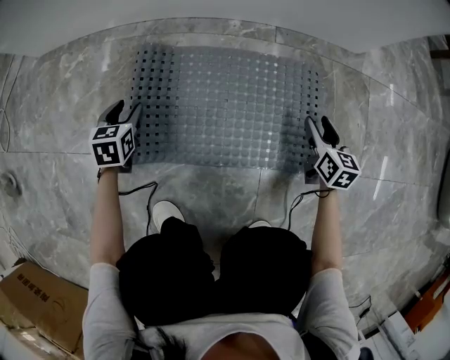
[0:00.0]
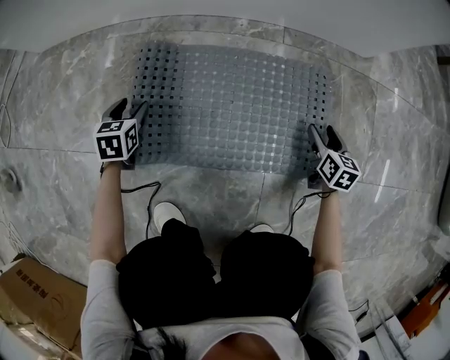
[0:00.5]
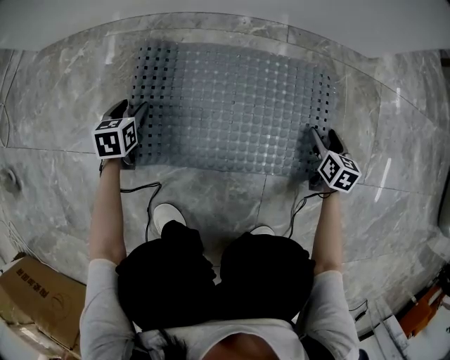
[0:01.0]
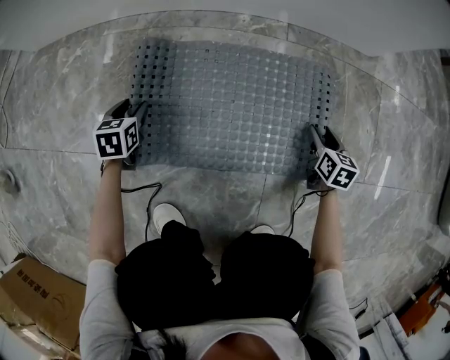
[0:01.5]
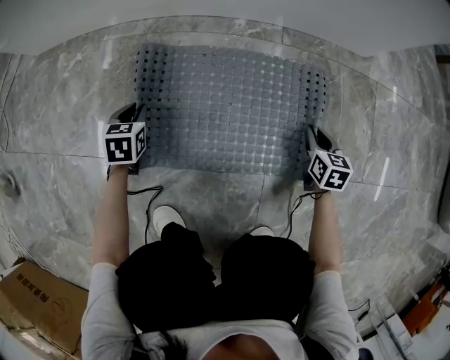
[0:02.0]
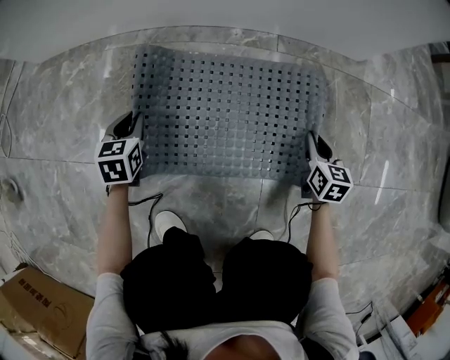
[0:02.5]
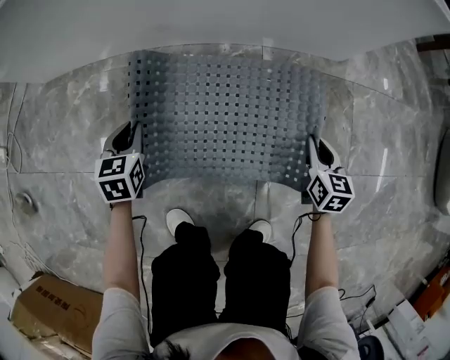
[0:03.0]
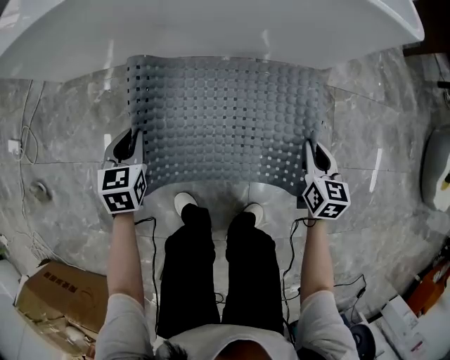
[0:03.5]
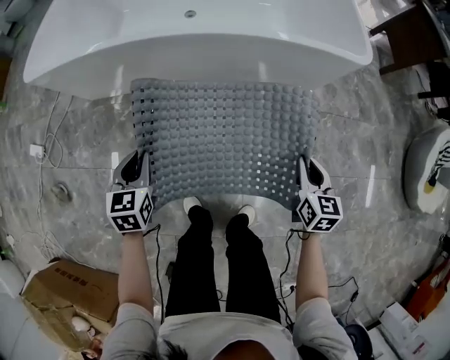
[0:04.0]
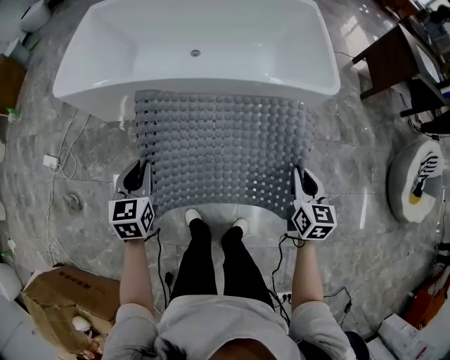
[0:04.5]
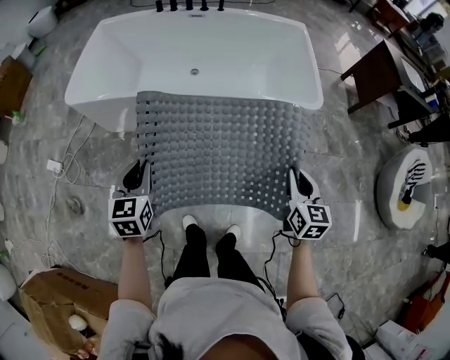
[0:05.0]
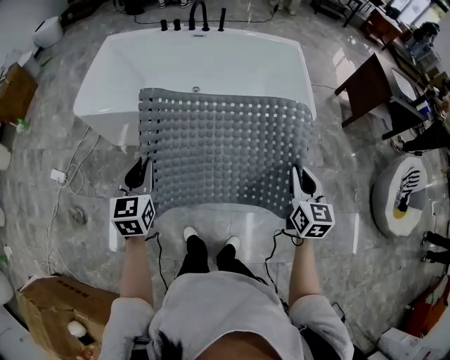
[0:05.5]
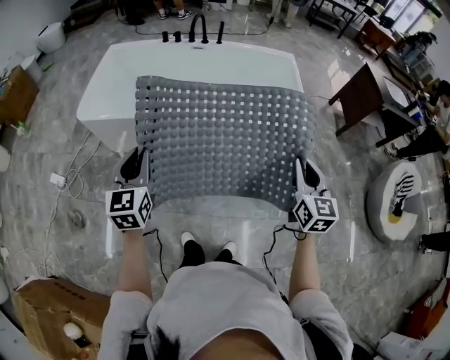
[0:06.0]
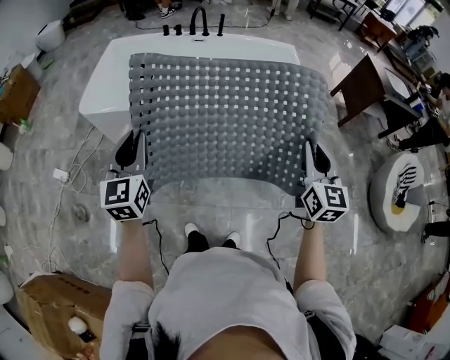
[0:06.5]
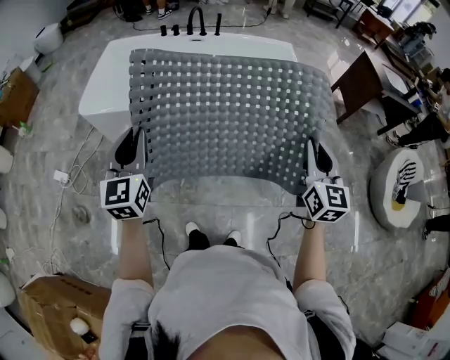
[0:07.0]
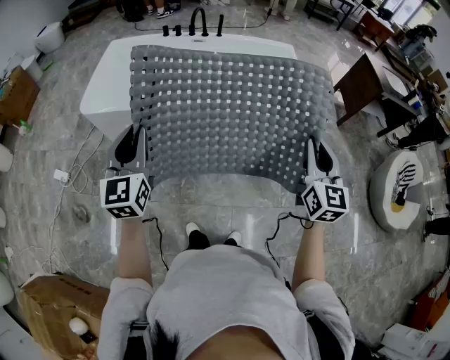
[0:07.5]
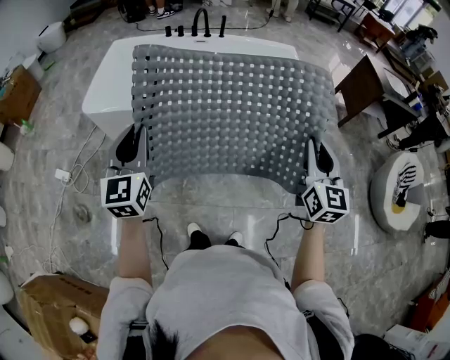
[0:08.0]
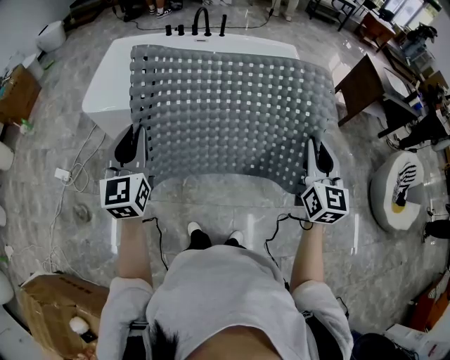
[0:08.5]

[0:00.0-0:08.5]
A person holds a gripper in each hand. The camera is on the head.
0:00.0 to 0:02.0: The right gripper travels downward by about 5 cm, and closes up; the left gripper closes up.
0:02.0 to 0:04.0: Both grippers travel together upward, roughly 60 cm.
0:04.0 to 0:06.5: The grippers both shift upward by about 50 cm. The left gripper angles its fingers upward, by about 30 degrees. Meanwhile the right gripper swivels approximately 30 degrees.
0:06.5 to 0:08.5: The grippers move only a little.

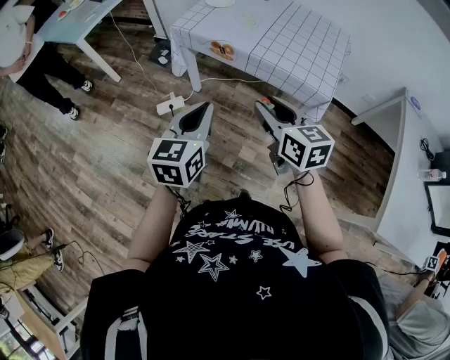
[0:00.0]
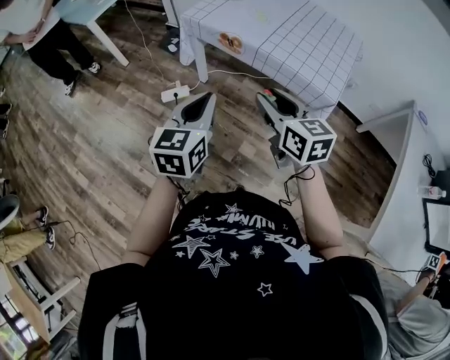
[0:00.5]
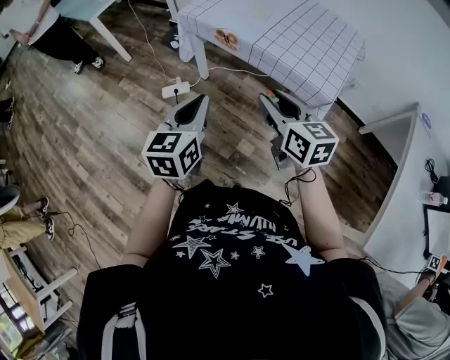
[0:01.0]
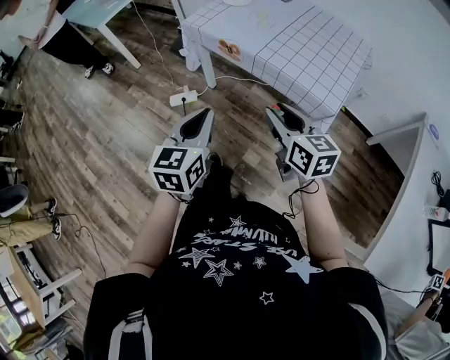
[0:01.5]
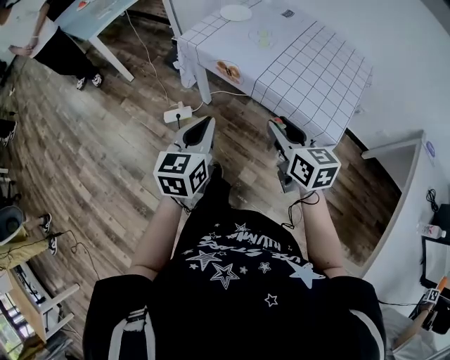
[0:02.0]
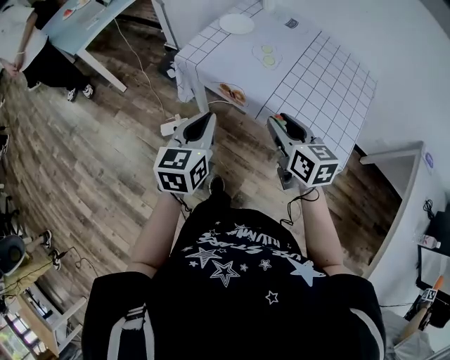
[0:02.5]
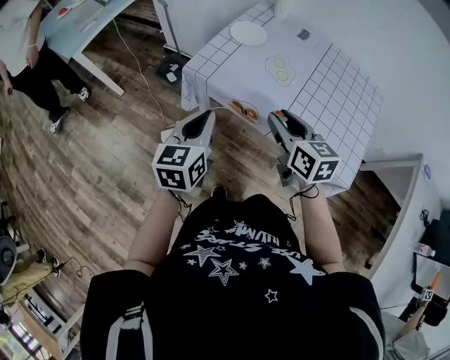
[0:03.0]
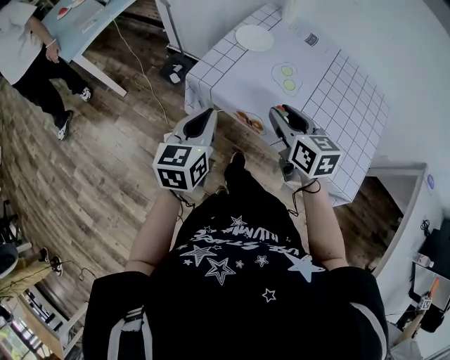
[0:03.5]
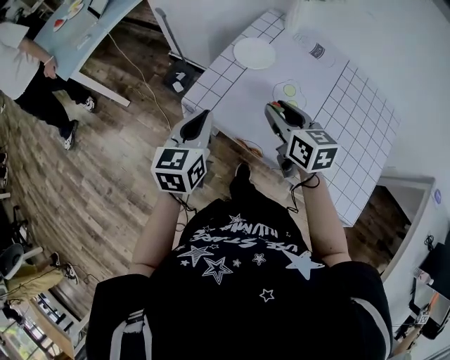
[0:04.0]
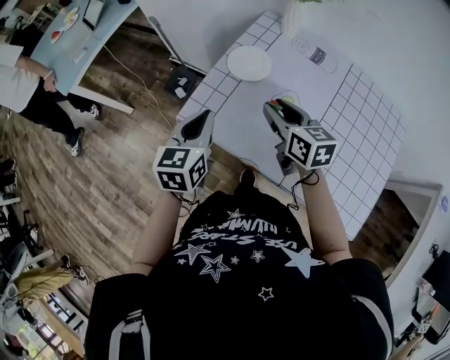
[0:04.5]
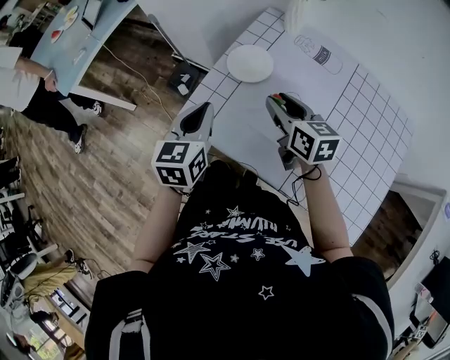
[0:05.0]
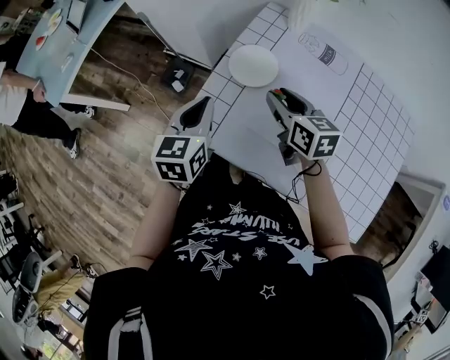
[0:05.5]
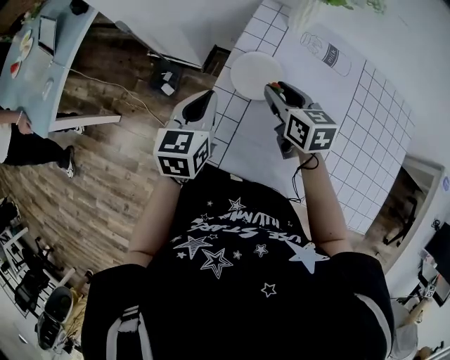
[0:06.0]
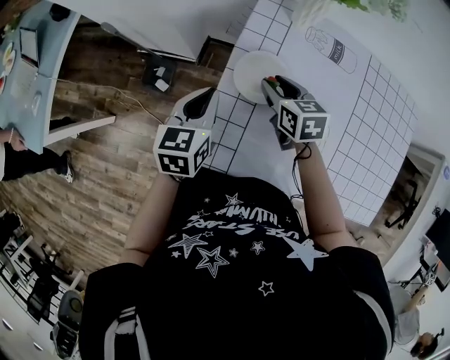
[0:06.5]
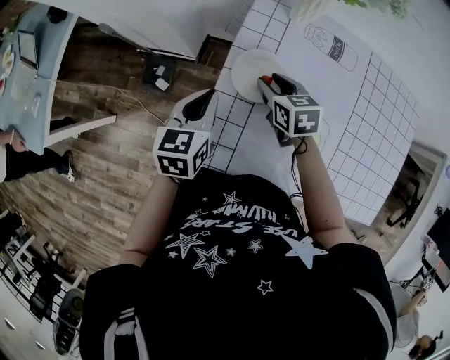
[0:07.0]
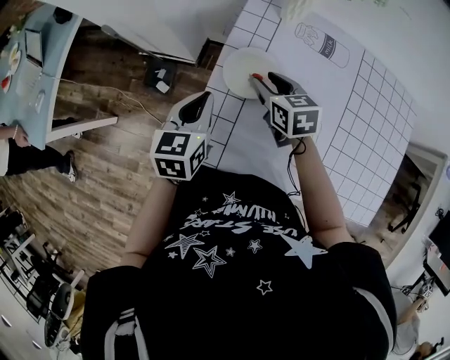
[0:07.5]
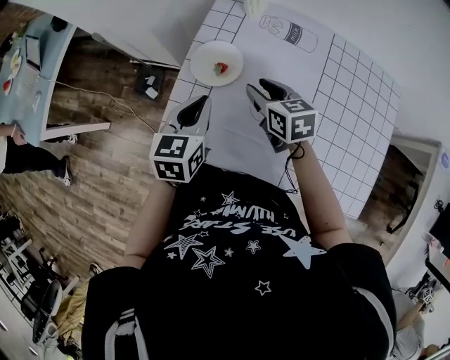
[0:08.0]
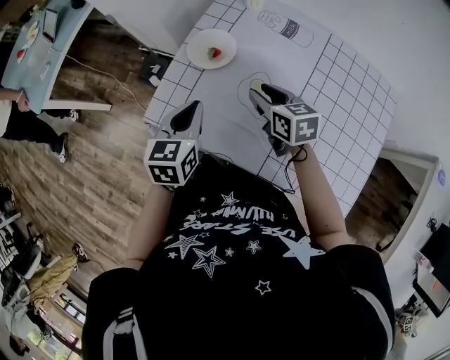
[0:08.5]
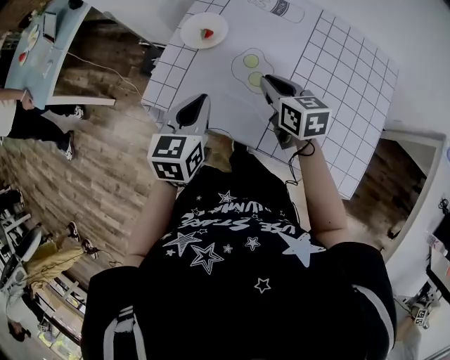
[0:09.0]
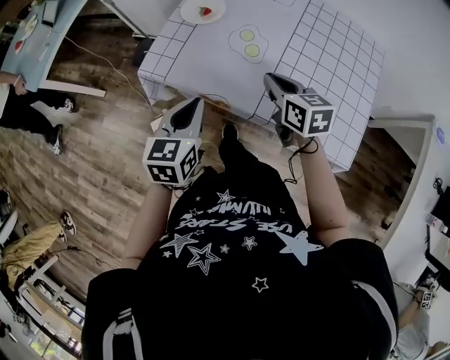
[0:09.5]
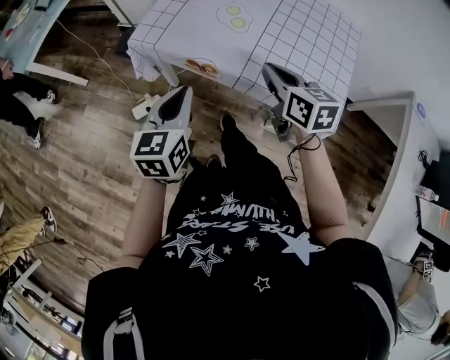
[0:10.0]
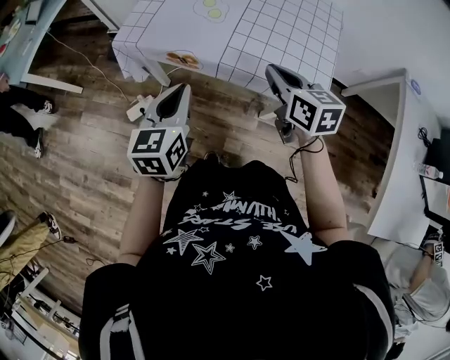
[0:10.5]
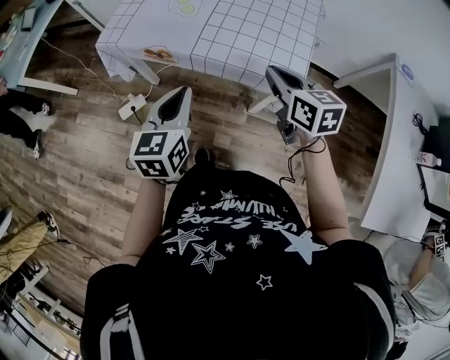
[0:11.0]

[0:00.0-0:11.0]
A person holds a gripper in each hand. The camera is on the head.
0:00.0 to 0:02.0: The left gripper shifts some 10 cm forward; the right gripper travels forward and to the right by approximately 15 cm.
0:02.0 to 0:03.5: The two grippers go approximately 25 cm forward.
0:03.5 to 0:05.5: The two grippers go roughly 25 cm forward.
0:05.5 to 0:07.5: The left gripper heads forward, covering some 10 cm. Meanwhile the right gripper is displaced forward and downward by roughly 10 cm.
0:07.5 to 0:09.0: The two grippers go about 25 cm backward and to the right. The right gripper closes its fingers.
0:09.0 to 0:11.0: The right gripper shifts some 35 cm backward and to the right. The left gripper travels backward by about 30 cm.

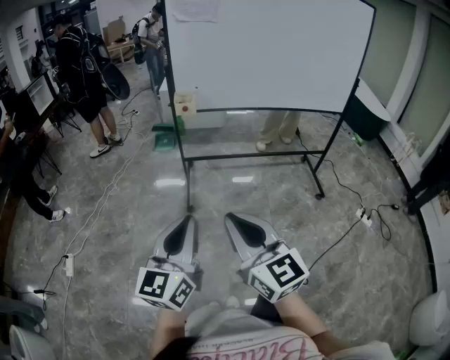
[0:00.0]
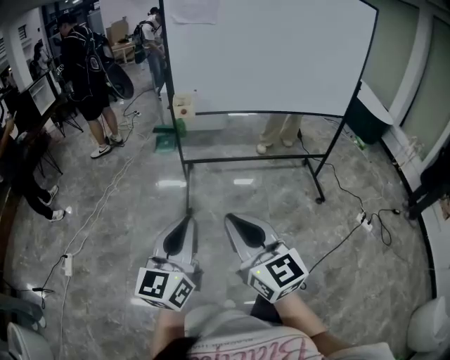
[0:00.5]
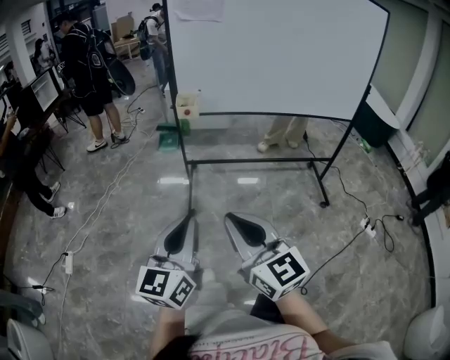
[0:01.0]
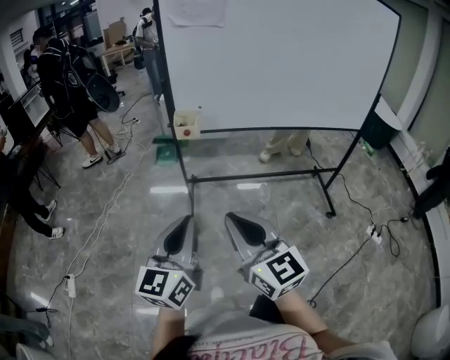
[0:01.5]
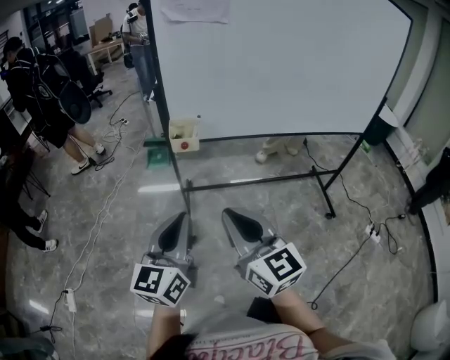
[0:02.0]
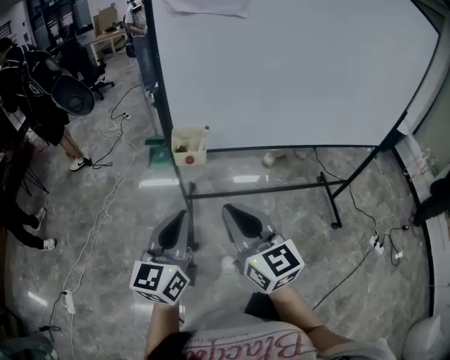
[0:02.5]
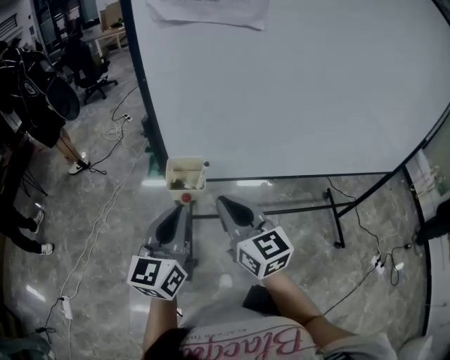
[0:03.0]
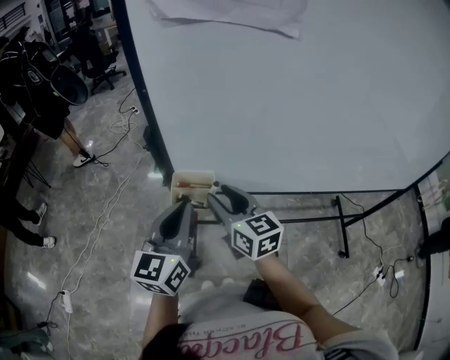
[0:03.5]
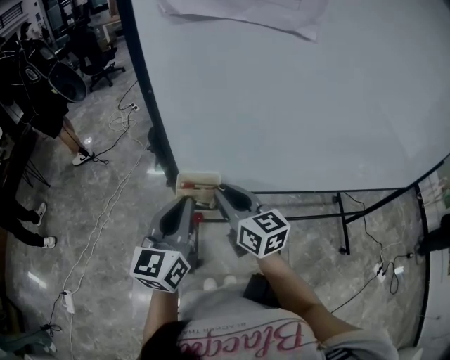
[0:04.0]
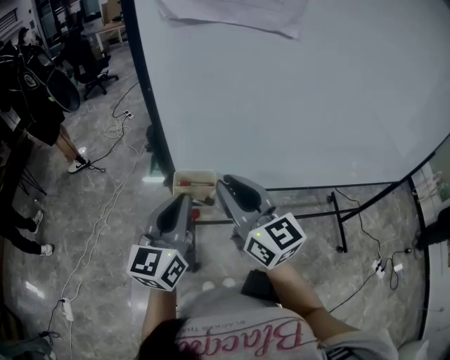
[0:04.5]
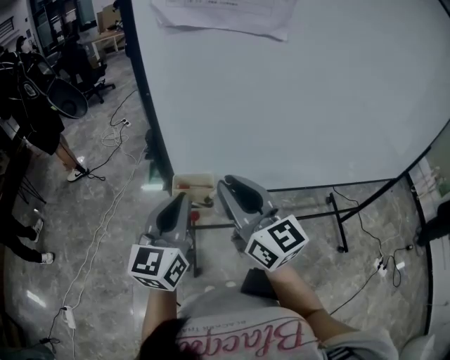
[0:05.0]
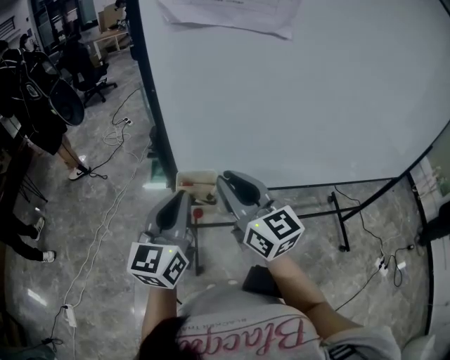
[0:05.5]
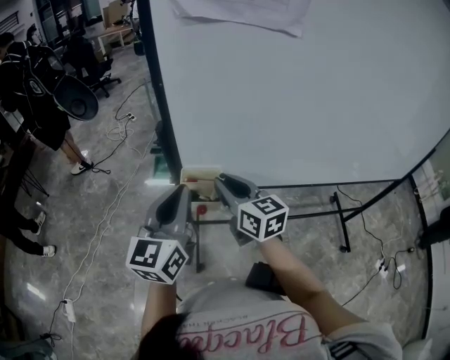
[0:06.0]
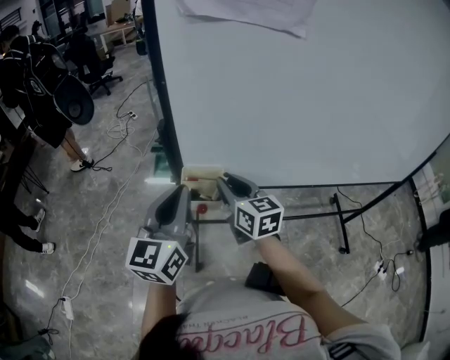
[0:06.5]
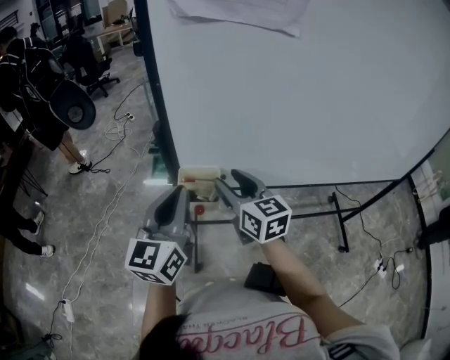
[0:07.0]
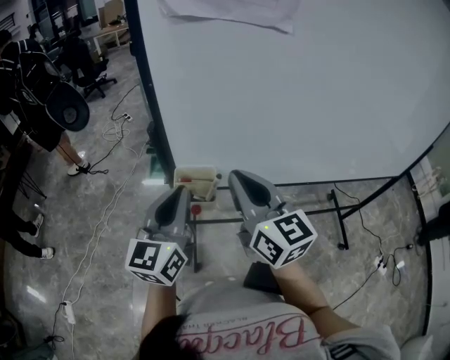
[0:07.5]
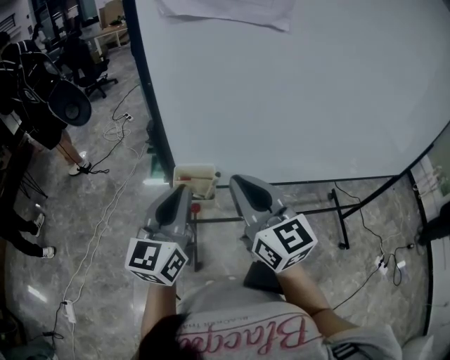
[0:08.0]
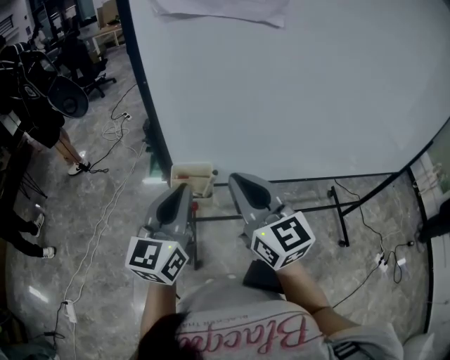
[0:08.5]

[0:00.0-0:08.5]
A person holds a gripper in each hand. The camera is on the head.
0:00.0 to 0:02.0: The two grippers go approximately 25 cm forward.
0:02.0 to 0:04.0: The two grippers go roughly 35 cm forward. The right gripper opens, then closes once more.
0:04.0 to 0:06.5: The right gripper moves roughly 10 cm upward and comes back.
0:06.5 to 0:08.5: The right gripper moves upward and backward, approximately 15 cm, and opens and closes again.
